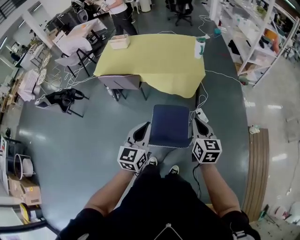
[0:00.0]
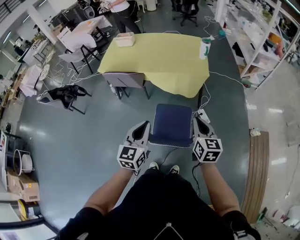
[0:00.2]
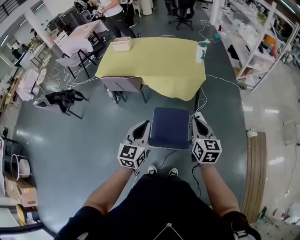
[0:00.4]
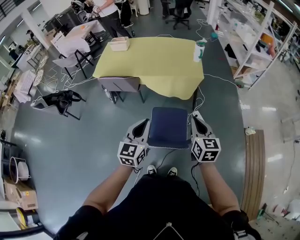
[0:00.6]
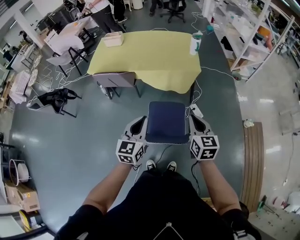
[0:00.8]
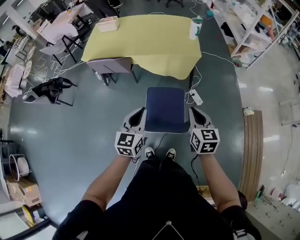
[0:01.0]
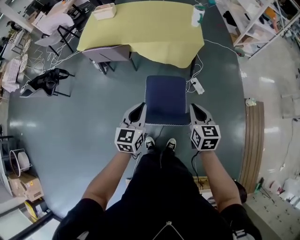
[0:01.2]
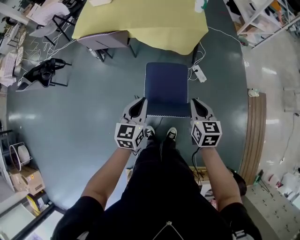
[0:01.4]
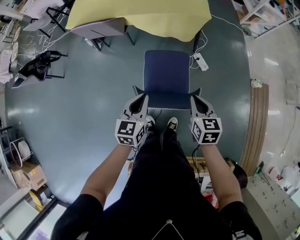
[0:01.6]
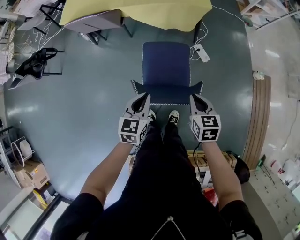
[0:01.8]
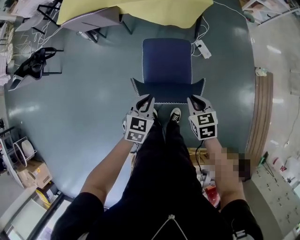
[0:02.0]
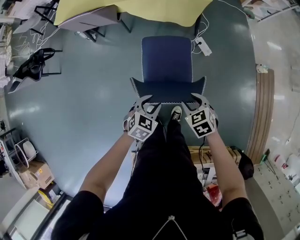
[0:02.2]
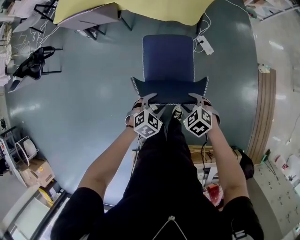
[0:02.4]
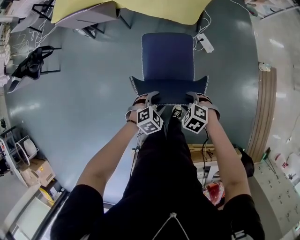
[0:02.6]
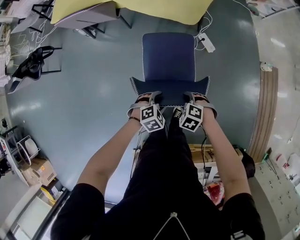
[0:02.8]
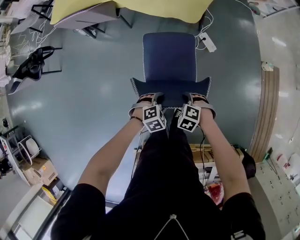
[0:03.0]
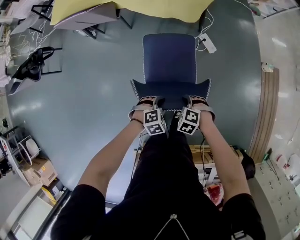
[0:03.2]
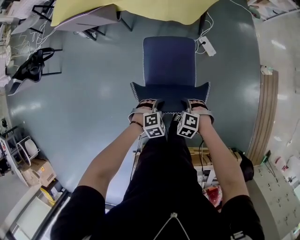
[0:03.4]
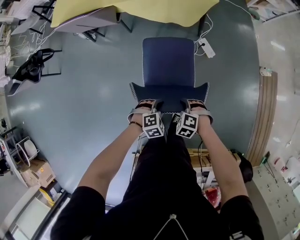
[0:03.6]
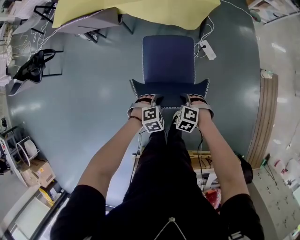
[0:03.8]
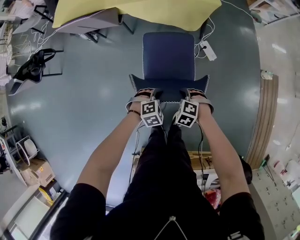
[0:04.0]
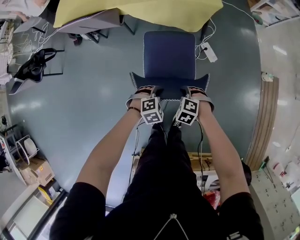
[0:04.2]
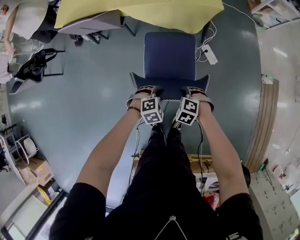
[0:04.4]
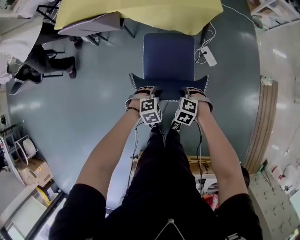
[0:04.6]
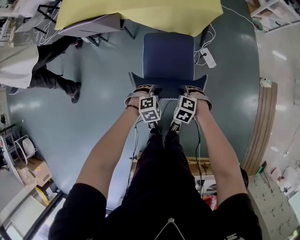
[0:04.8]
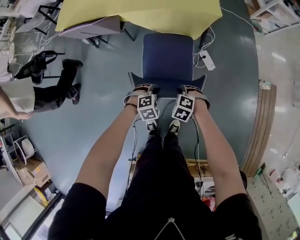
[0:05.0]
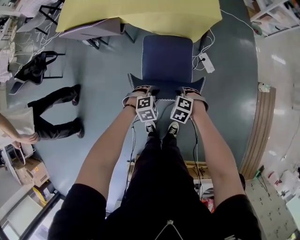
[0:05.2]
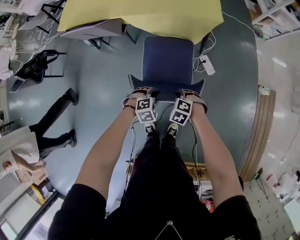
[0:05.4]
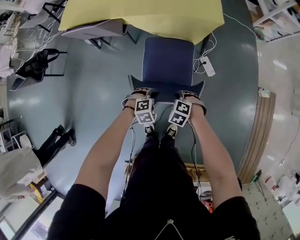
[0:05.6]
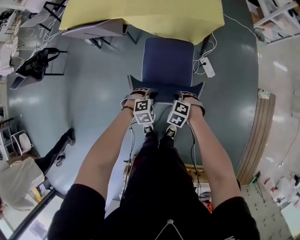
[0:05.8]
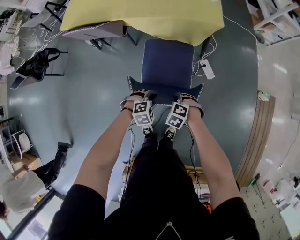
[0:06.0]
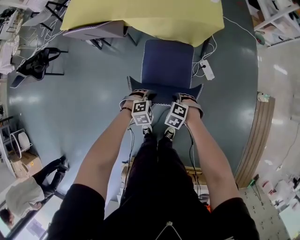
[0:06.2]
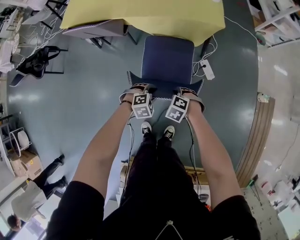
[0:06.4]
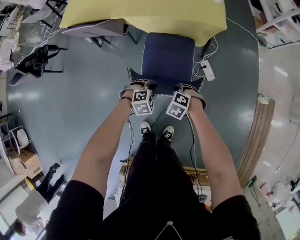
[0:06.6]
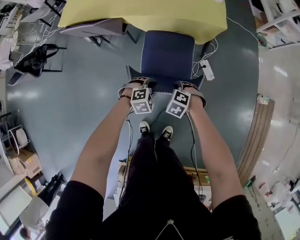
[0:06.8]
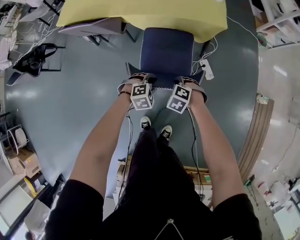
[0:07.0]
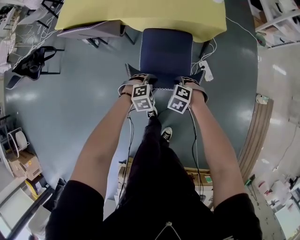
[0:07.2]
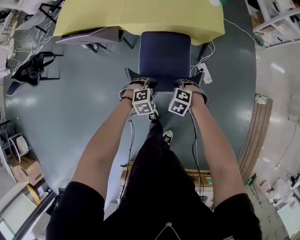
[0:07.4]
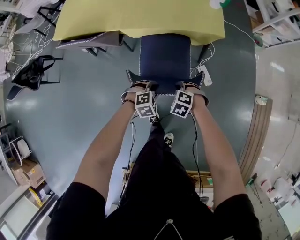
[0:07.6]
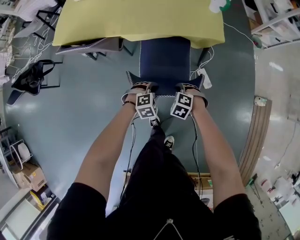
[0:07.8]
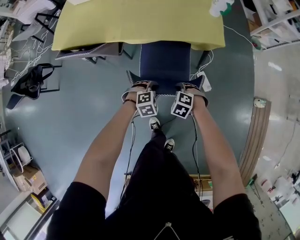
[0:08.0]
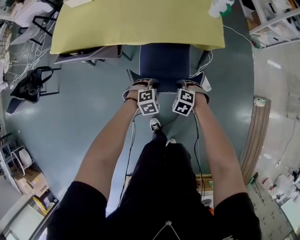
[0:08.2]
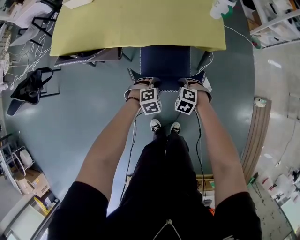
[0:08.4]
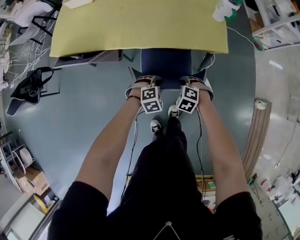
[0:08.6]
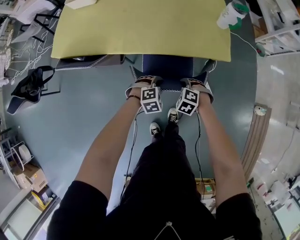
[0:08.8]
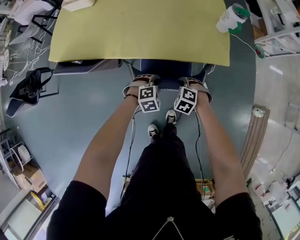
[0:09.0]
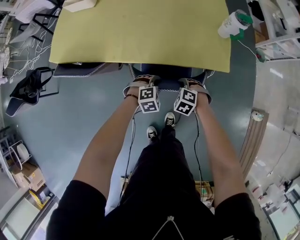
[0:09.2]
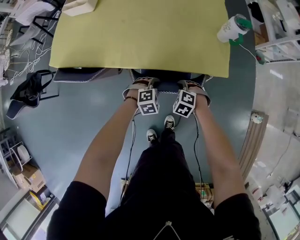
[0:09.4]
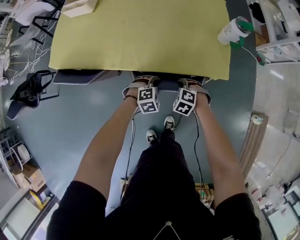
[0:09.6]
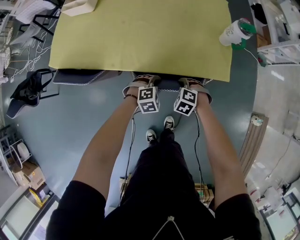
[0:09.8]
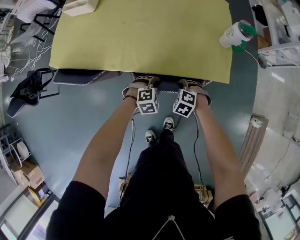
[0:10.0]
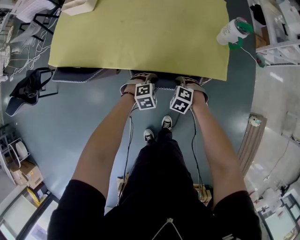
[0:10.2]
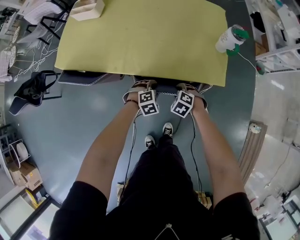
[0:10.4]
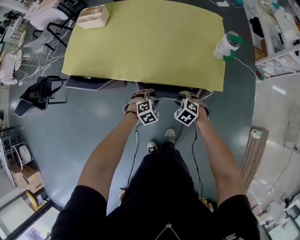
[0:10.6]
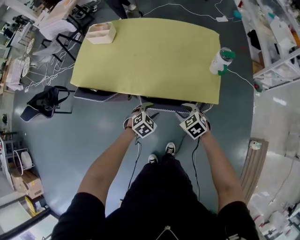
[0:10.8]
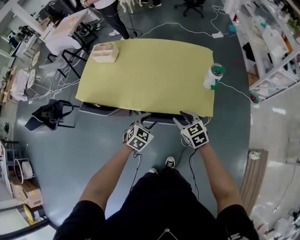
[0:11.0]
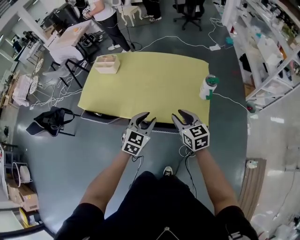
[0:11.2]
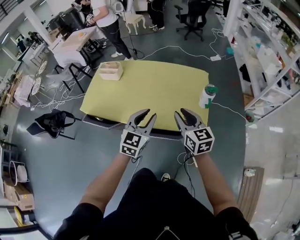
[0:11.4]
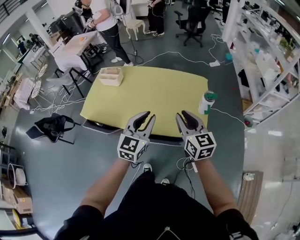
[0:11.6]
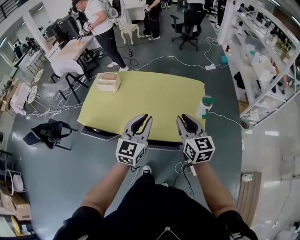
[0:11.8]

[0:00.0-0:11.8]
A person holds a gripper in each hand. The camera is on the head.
0.0 to 1.4 s: The two grippers go approximately 15 cm downward.
1.4 to 3.0 s: The grippers both shift downward by some 30 cm. The right gripper tilts its fingers roughly 40 degrees downward, and opens up; the left gripper angles its fingers downward, by about 50 degrees, and opens.
3.0 to 4.4 s: The left gripper shifts by about 10 cm, while the right gripper changes place by some 10 cm.
4.4 to 6.0 s: There are only small adjustments of the grippers.
6.0 to 7.4 s: The left gripper ends up approximately 15 cm from where it was. The right gripper changes place by approximately 15 cm.
7.4 to 8.8 s: The two grippers go approximately 20 cm forward.
8.8 to 10.4 s: Both grippers travel together forward, some 10 cm.
10.4 to 11.8 s: The grippers both shift upward by roughly 50 cm. The left gripper tilts its fingers roughly 60 degrees upward, and closes its fingers. The right gripper tilts its fingers some 60 degrees upward.

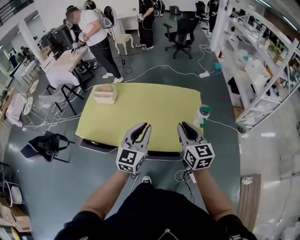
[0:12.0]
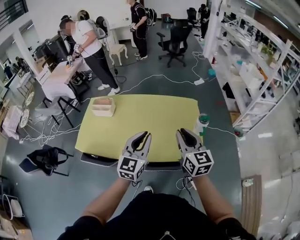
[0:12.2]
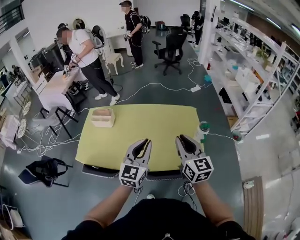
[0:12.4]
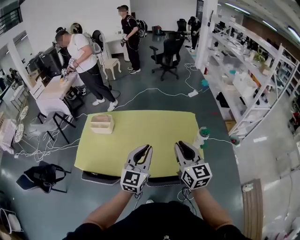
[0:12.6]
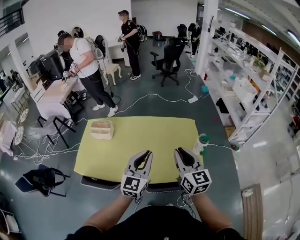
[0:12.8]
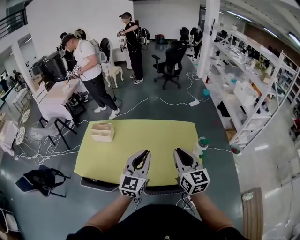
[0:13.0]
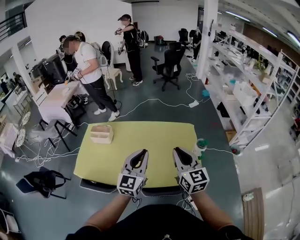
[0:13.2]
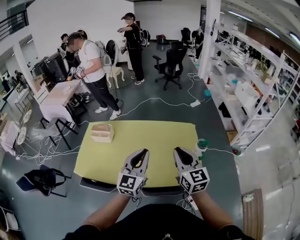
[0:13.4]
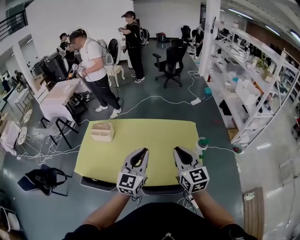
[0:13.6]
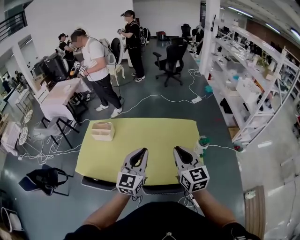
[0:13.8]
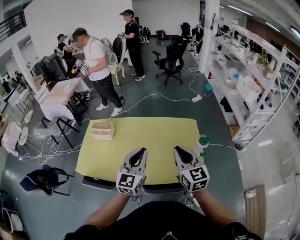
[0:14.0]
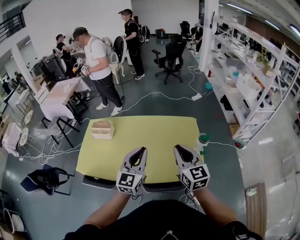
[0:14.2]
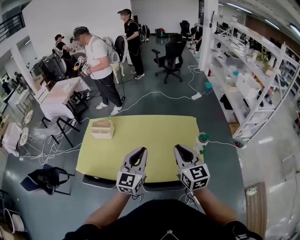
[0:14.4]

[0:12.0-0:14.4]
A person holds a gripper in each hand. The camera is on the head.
12.0 to 13.2 s: The right gripper moves upward and to the left, some 10 cm. The left gripper goes roughly 5 cm forward.
13.2 to 14.4 s: The grippers move only a little.

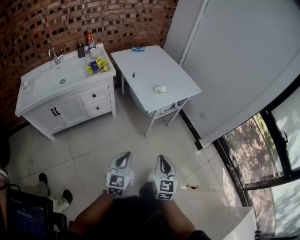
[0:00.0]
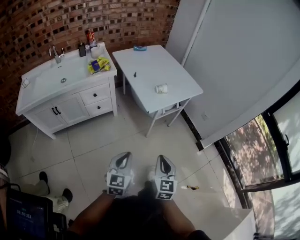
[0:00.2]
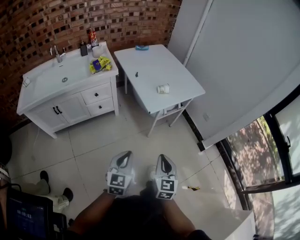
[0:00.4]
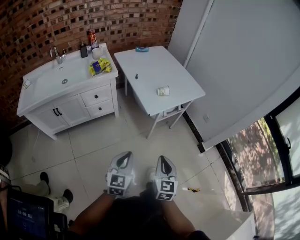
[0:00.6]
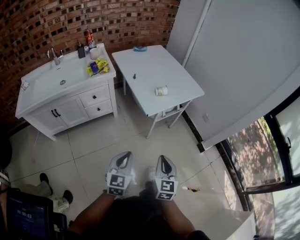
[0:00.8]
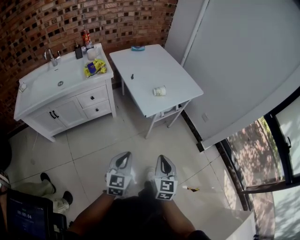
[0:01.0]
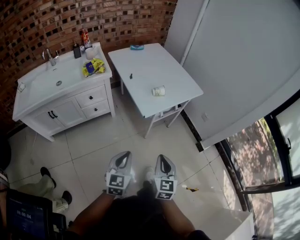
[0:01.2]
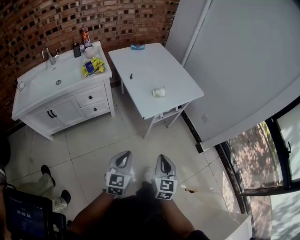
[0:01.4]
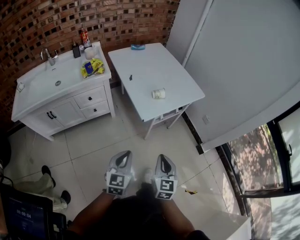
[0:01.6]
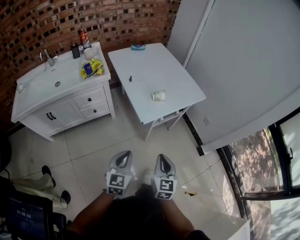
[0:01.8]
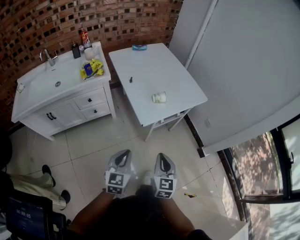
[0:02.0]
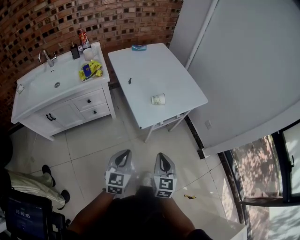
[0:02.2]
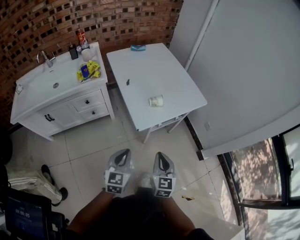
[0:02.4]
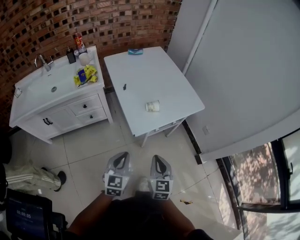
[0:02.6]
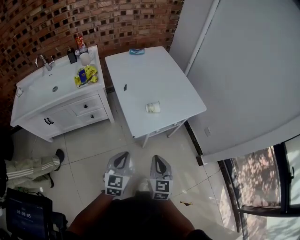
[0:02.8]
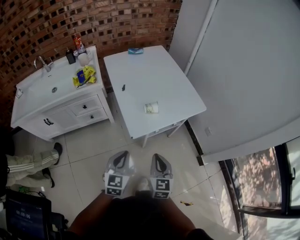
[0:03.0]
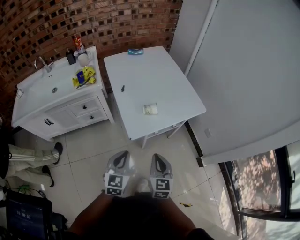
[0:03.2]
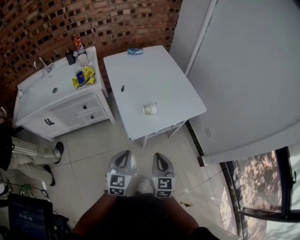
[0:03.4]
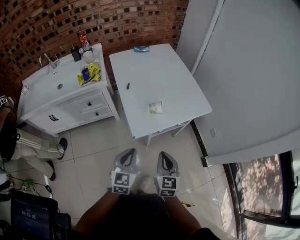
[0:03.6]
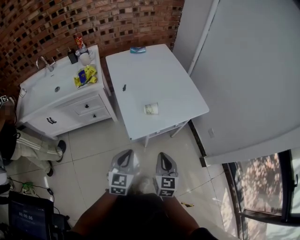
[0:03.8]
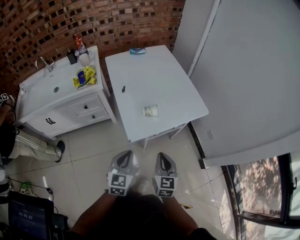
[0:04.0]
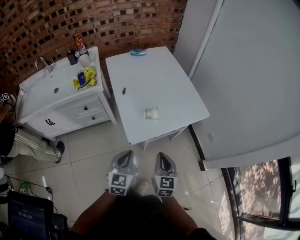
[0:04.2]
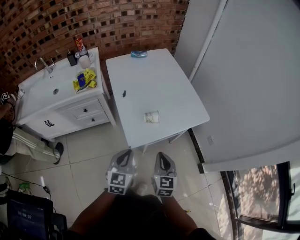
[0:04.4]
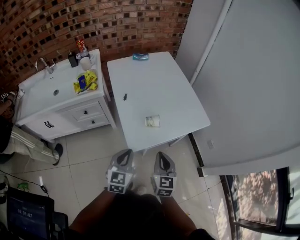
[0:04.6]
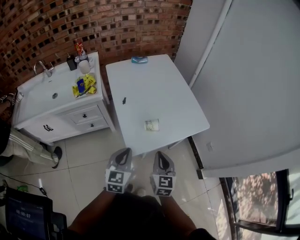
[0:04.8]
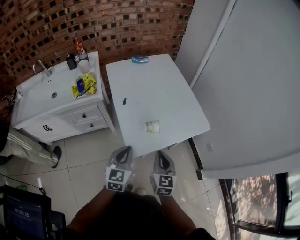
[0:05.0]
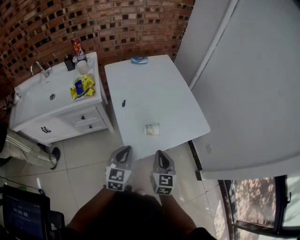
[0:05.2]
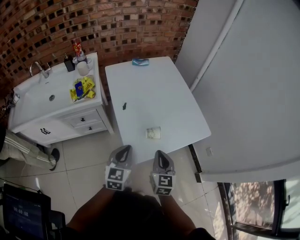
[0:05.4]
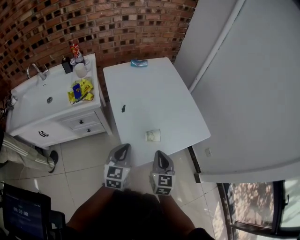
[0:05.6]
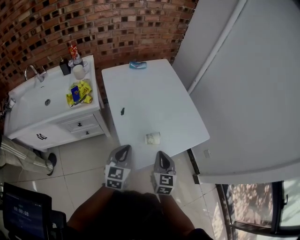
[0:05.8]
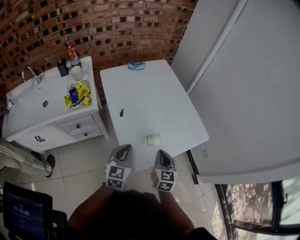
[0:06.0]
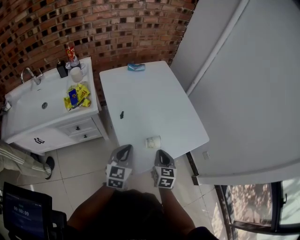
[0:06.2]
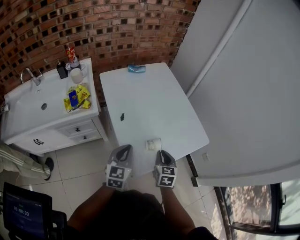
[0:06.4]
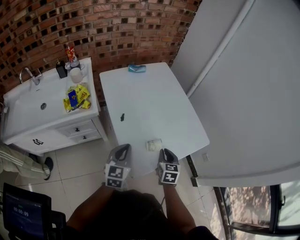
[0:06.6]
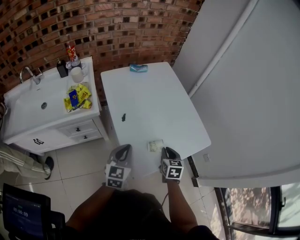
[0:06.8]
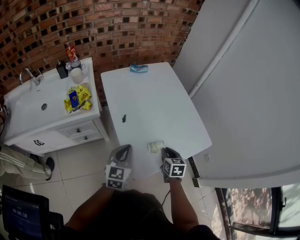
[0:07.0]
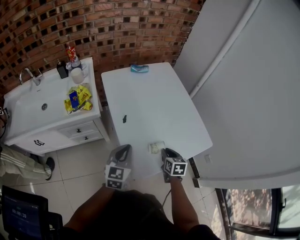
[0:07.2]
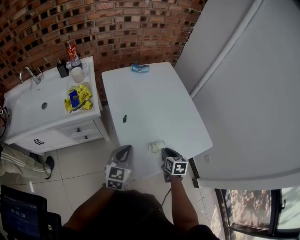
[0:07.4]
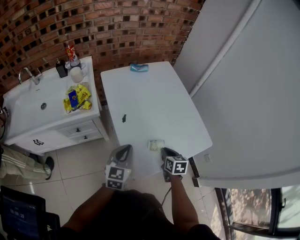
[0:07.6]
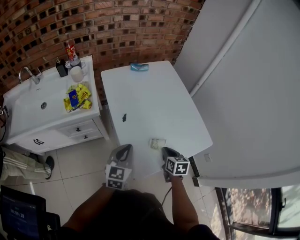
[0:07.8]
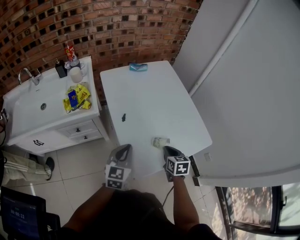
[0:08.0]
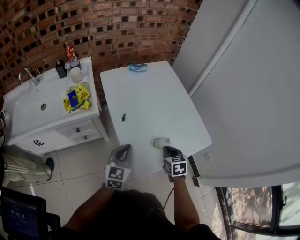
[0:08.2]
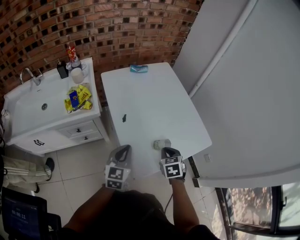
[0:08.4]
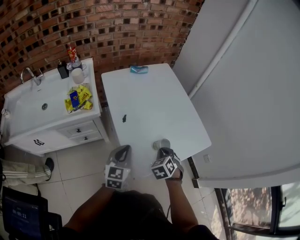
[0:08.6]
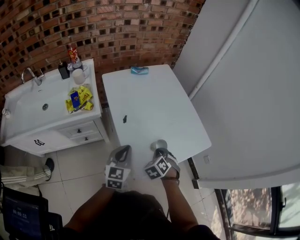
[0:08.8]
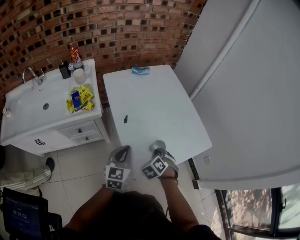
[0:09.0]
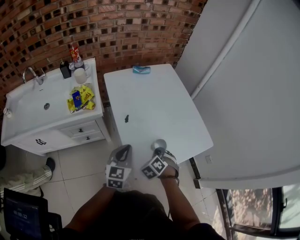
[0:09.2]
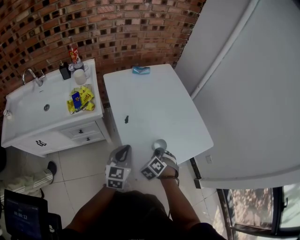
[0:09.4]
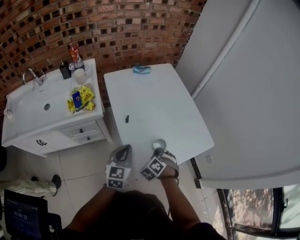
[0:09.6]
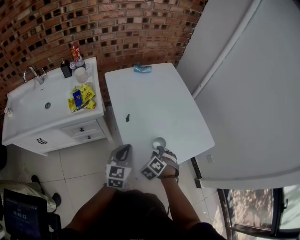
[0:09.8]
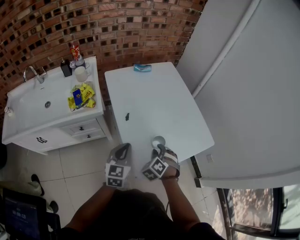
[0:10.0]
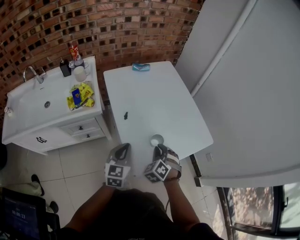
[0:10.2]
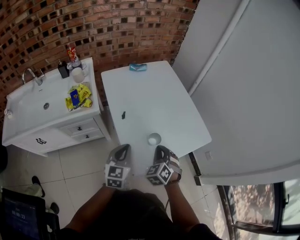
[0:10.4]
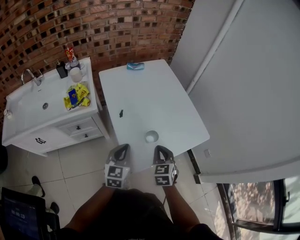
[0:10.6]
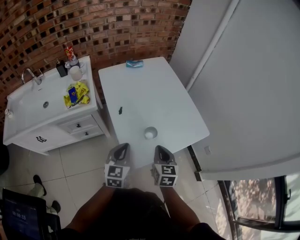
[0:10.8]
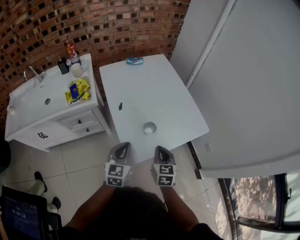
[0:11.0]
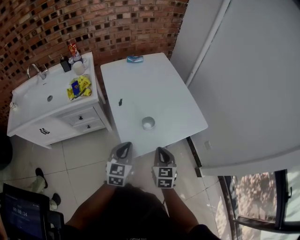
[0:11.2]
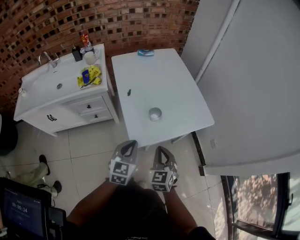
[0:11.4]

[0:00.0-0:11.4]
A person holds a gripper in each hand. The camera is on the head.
0.0 to 1.4 s: Both grippers move forward, approximately 10 cm.
1.4 to 2.8 s: Both grippers travel together forward, roughly 15 cm.
2.8 to 4.2 s: Both grippers travel together forward, roughly 5 cm.
4.2 to 5.6 s: The grippers both shift forward by some 15 cm.
5.6 to 7.2 s: The left gripper travels forward by approximately 5 cm. The right gripper travels downward and forward by approximately 15 cm, and changes its angle by about 30 degrees.
7.2 to 8.6 s: The right gripper ends up about 5 cm from where it was, and swivels about 40 degrees.
8.6 to 10.0 s: The right gripper opens up.
10.0 to 11.4 s: The left gripper goes about 15 cm backward and to the right, while the right gripper travels backward, upward and to the right by about 20 cm, changes its angle by approximately 40 degrees, and closes its fingers.
